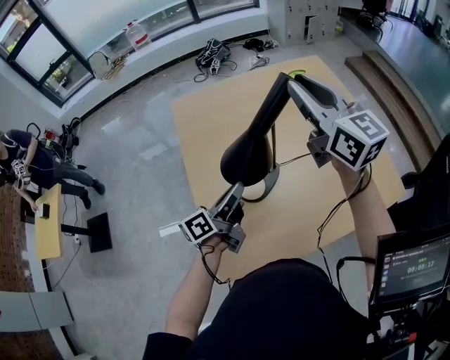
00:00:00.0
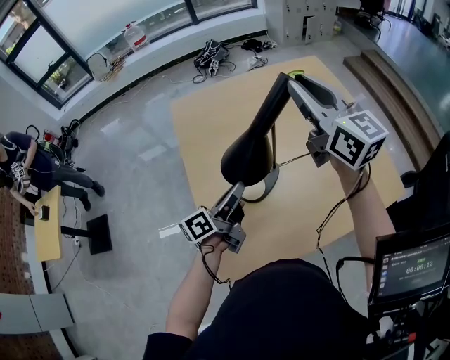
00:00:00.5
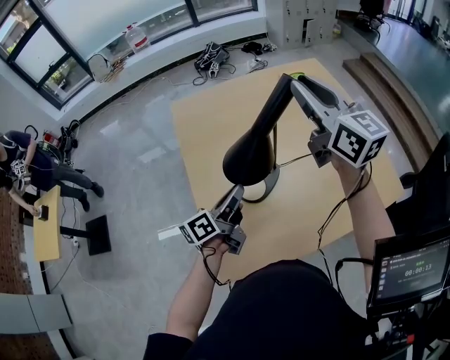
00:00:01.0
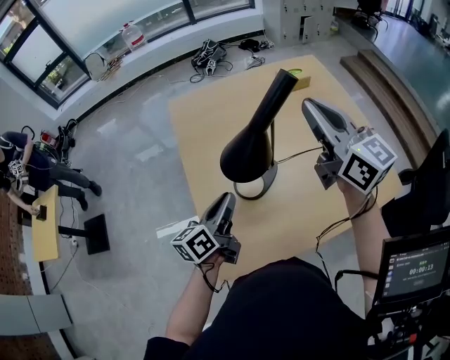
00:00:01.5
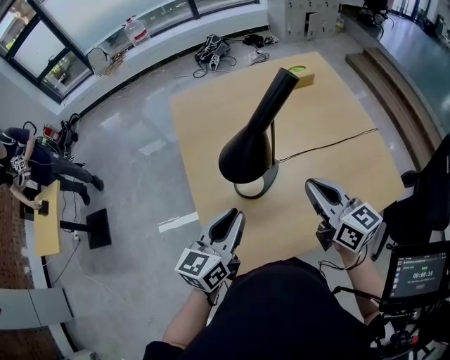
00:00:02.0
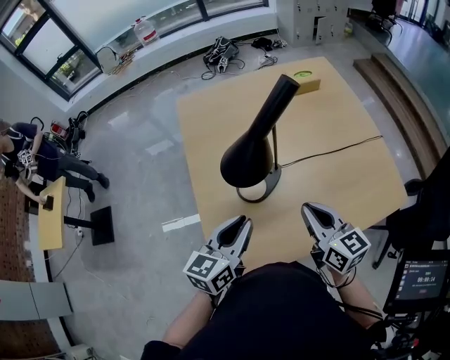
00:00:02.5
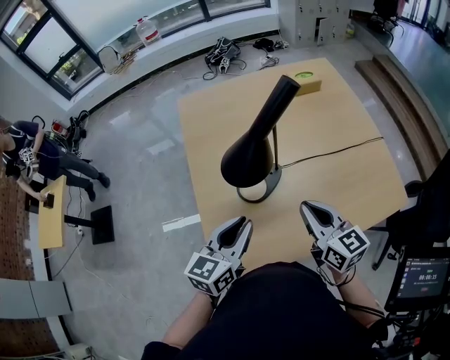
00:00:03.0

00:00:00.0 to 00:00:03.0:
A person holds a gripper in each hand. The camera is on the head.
00:00:00.0 to 00:00:01.5: There are only small adjustments of the grippers.
00:00:01.5 to 00:00:03.0: The right gripper goes some 25 cm downward and backward, and rotates approximately 20 degrees. The left gripper moves backward, about 10 cm, and turns by about 30 degrees.

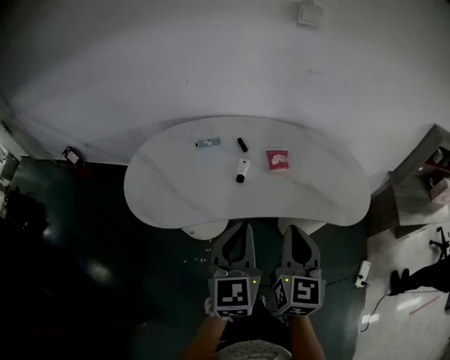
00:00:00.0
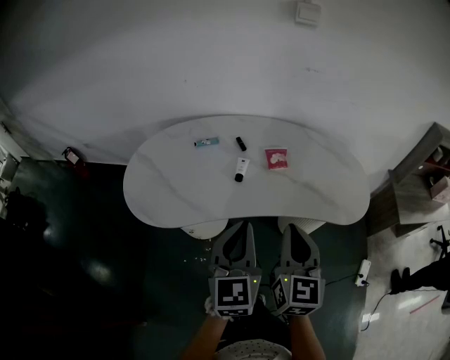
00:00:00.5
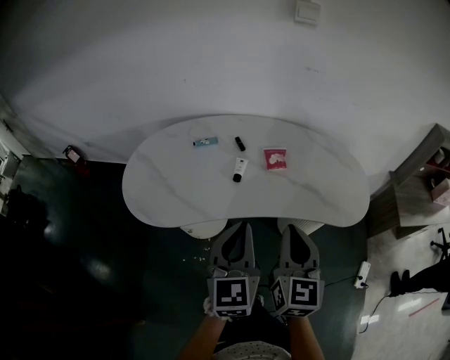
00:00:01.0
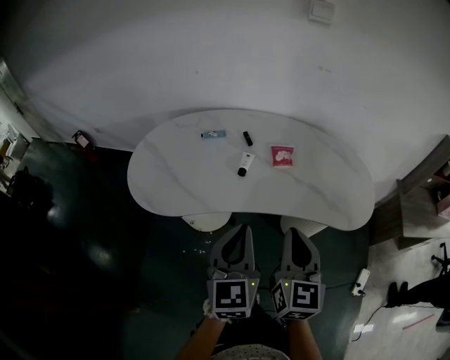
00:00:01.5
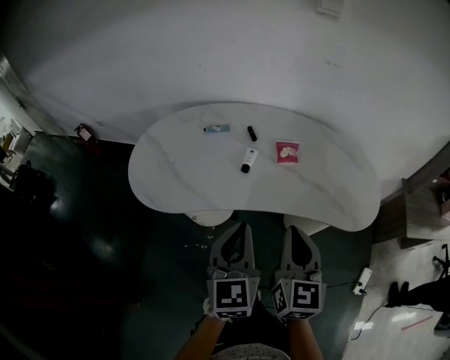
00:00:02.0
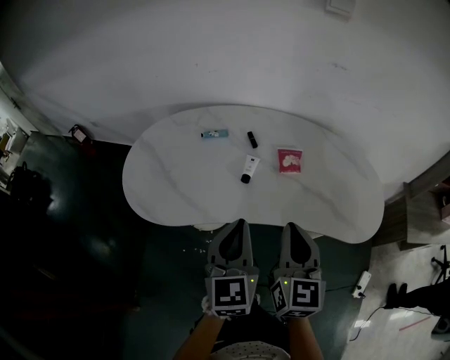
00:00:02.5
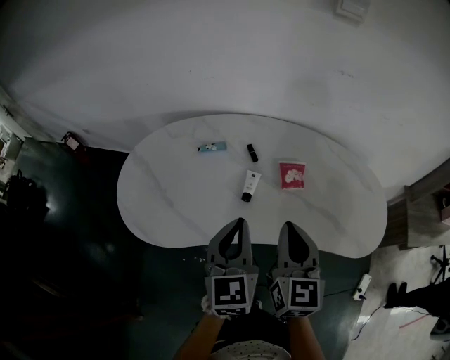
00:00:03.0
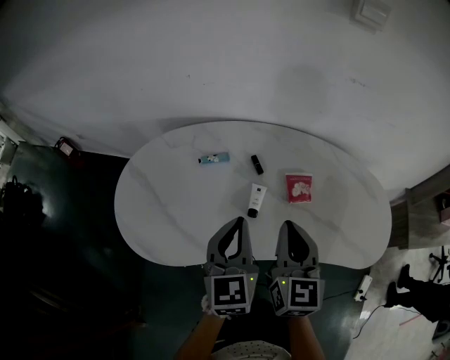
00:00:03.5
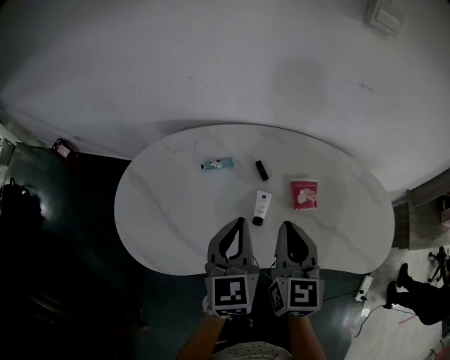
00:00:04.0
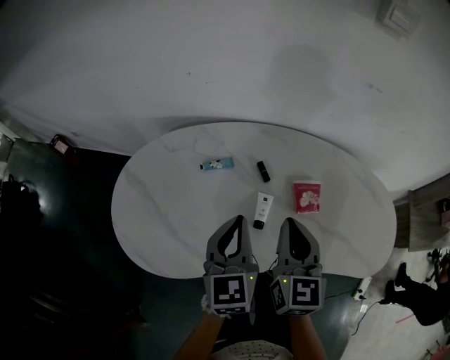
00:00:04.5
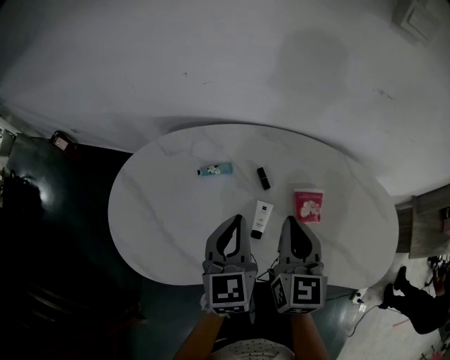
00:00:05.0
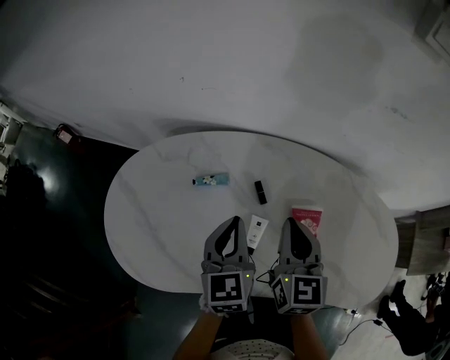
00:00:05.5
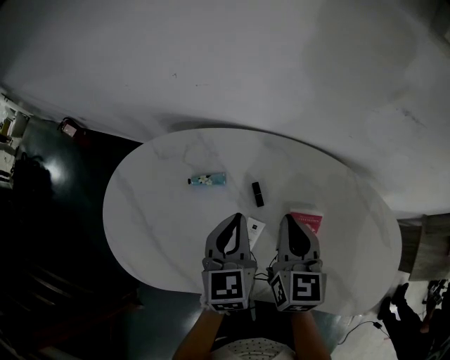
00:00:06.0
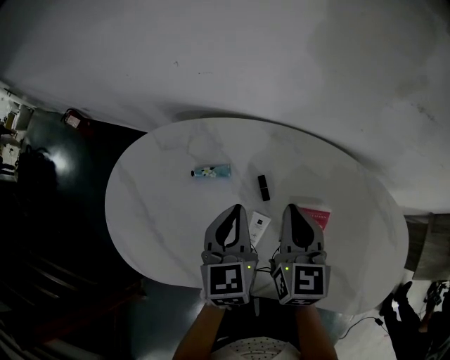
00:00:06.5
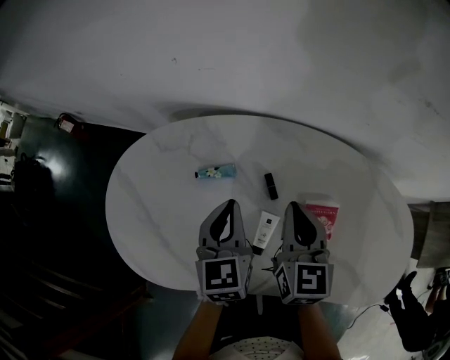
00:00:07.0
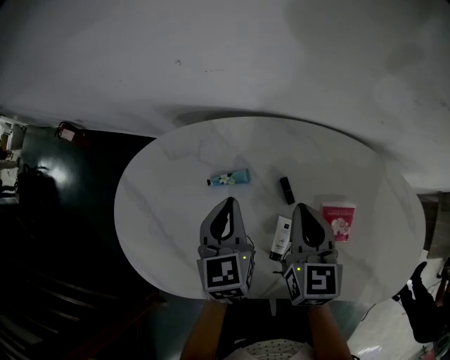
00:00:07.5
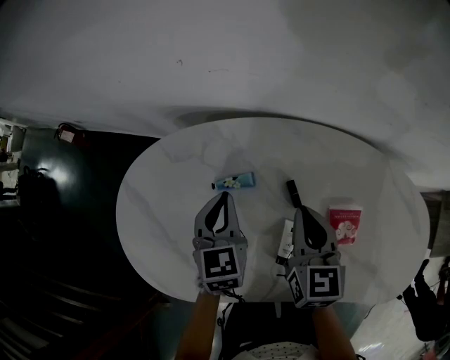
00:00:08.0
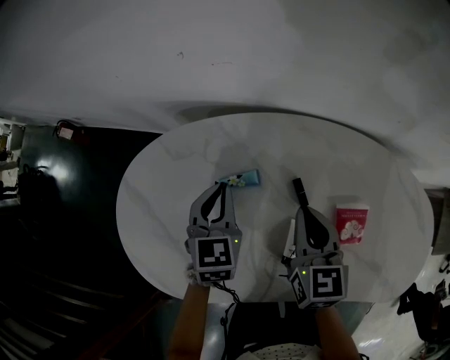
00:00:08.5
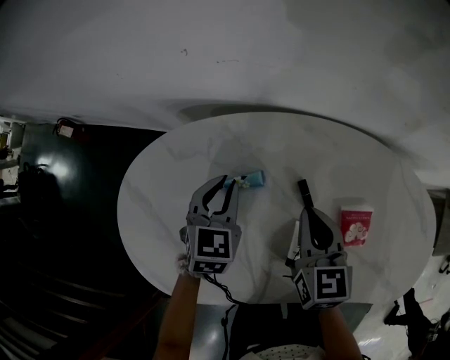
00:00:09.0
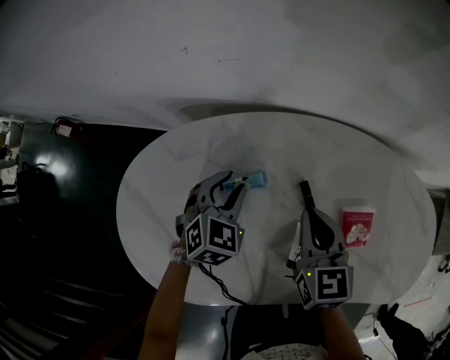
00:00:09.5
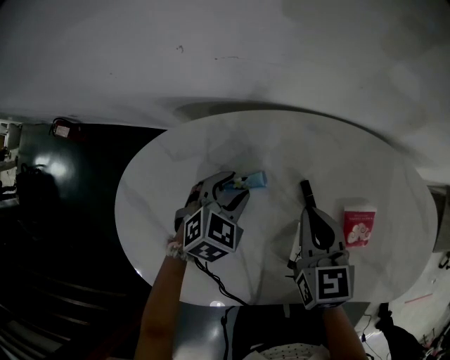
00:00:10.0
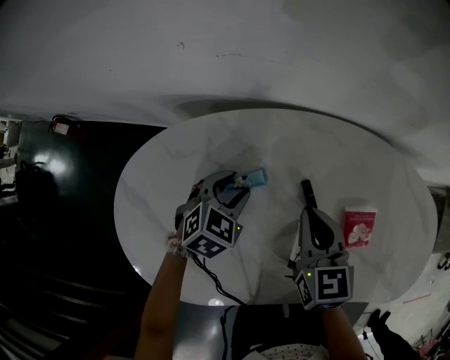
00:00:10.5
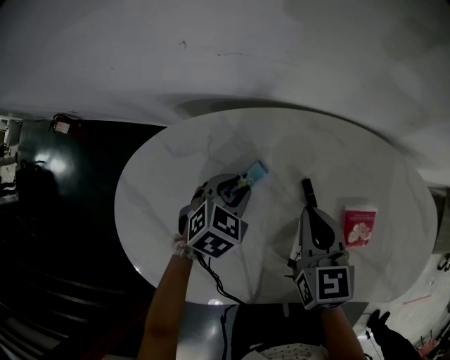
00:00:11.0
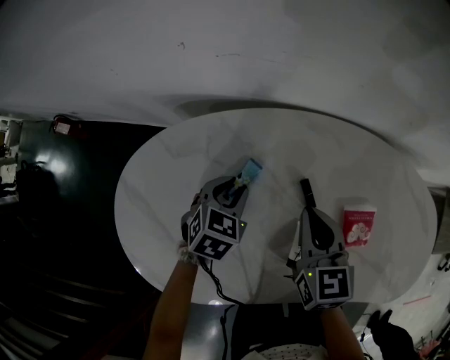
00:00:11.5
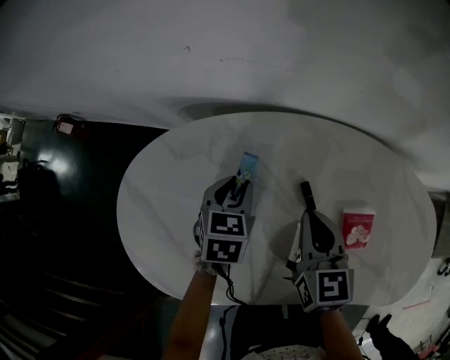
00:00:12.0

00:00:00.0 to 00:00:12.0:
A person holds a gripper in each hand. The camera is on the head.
00:00:00.0 to 00:00:02.0: The grippers stay close to where they were, moving slightly.
00:00:02.0 to 00:00:04.0: Both grippers move forward, approximately 25 cm.
00:00:04.0 to 00:00:06.0: The right gripper travels forward by roughly 15 cm. Meanwhile the left gripper moves forward and downward, about 15 cm.
00:00:06.0 to 00:00:08.0: The right gripper moves to the left, approximately 5 cm. The left gripper shifts roughly 15 cm to the left, forward and downward.
00:00:08.0 to 00:00:10.0: The left gripper heads downward, covering approximately 10 cm, changes its angle by roughly 50 degrees, and opens its fingers.
00:00:10.0 to 00:00:12.0: The left gripper swivels about 30 degrees.

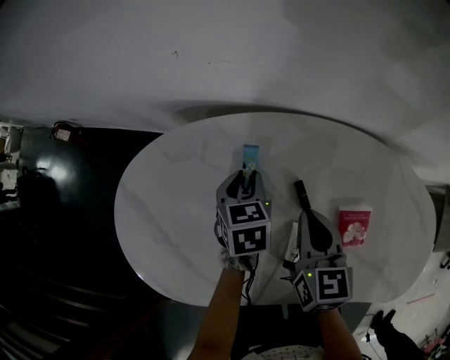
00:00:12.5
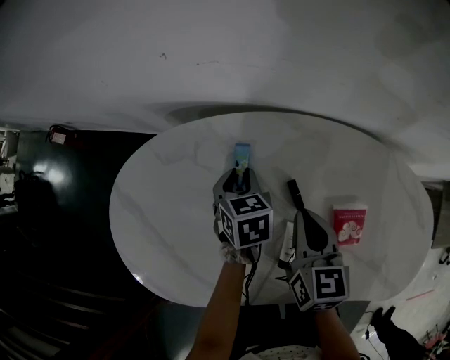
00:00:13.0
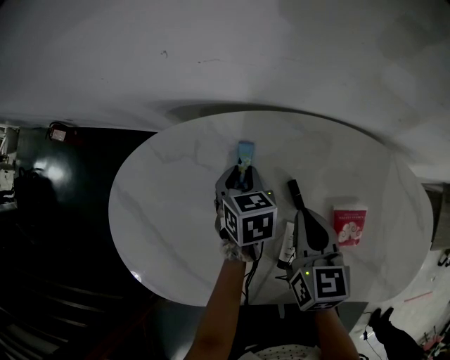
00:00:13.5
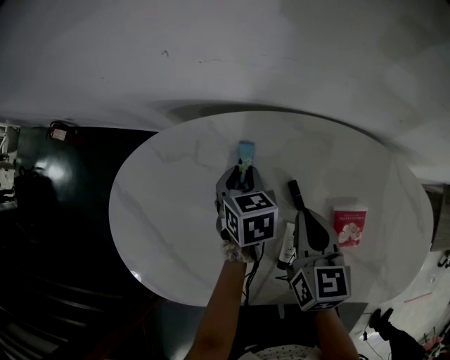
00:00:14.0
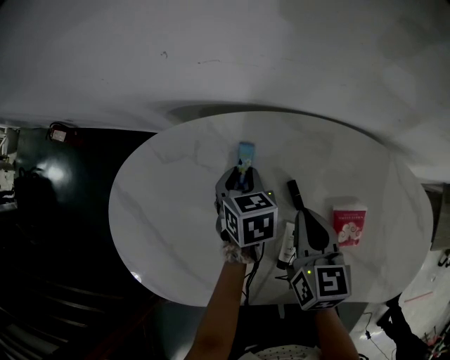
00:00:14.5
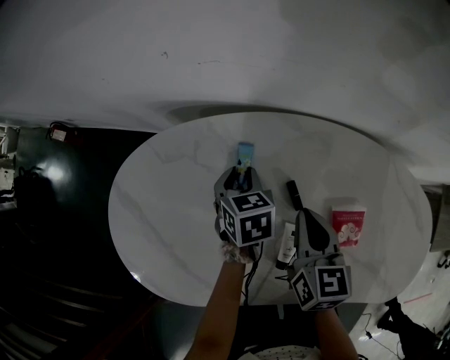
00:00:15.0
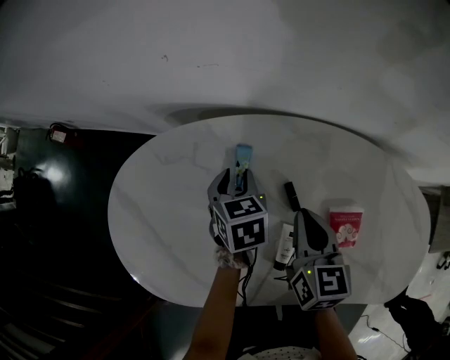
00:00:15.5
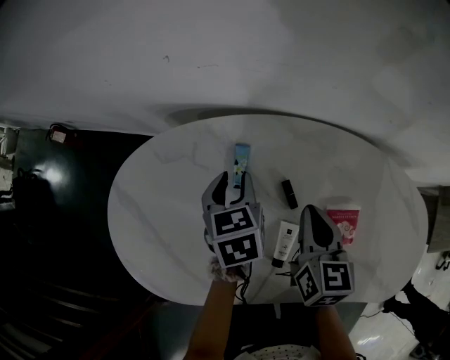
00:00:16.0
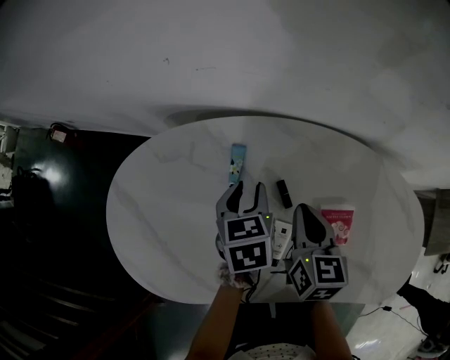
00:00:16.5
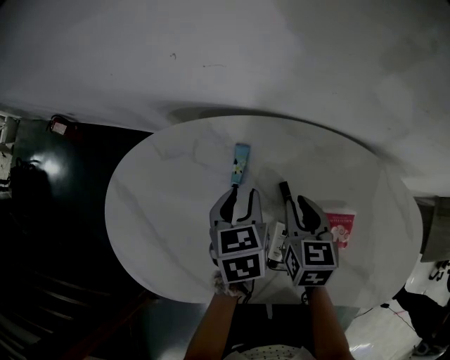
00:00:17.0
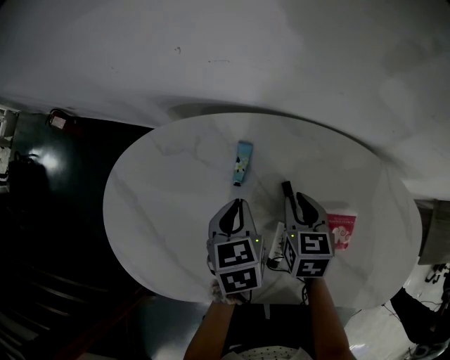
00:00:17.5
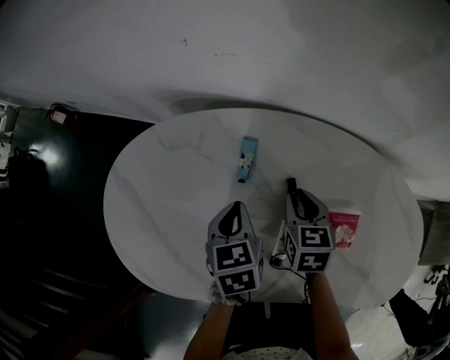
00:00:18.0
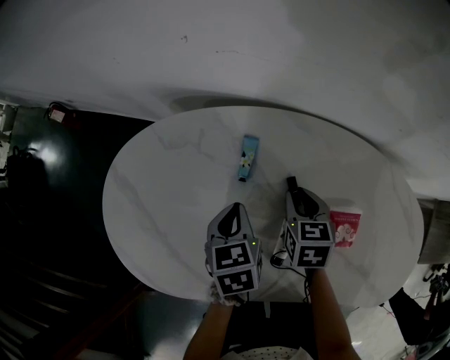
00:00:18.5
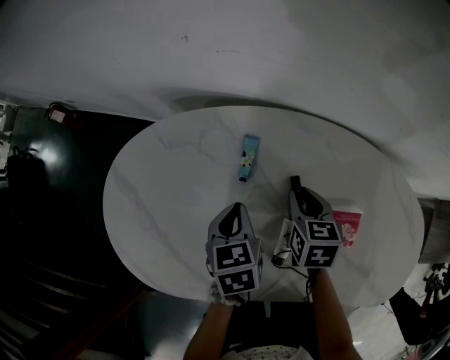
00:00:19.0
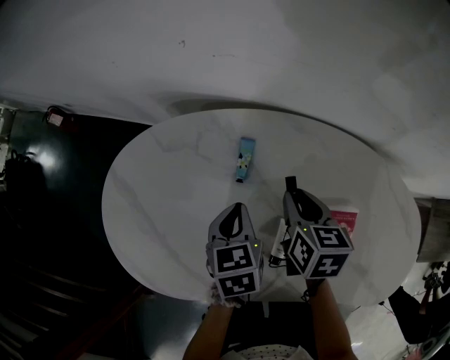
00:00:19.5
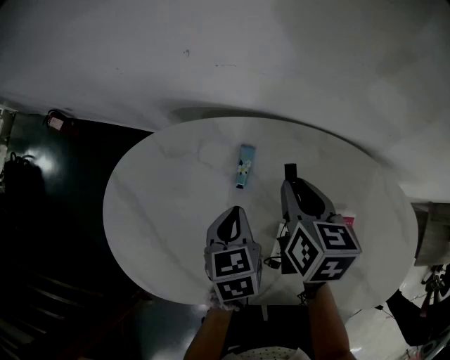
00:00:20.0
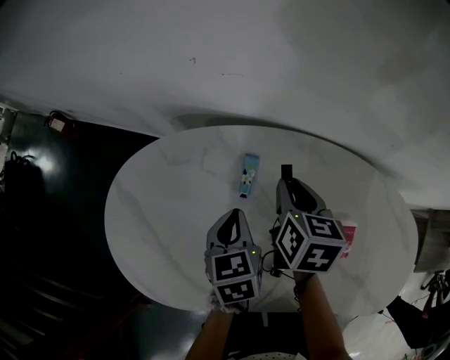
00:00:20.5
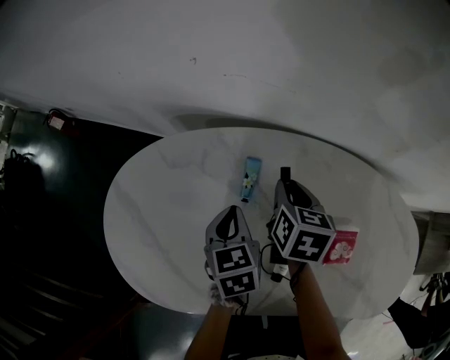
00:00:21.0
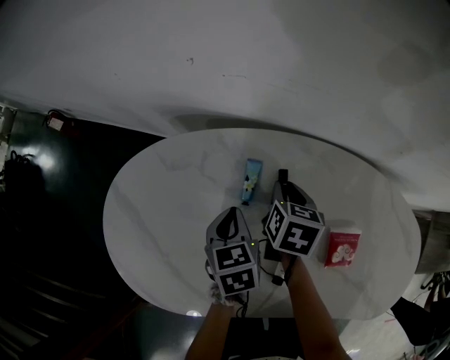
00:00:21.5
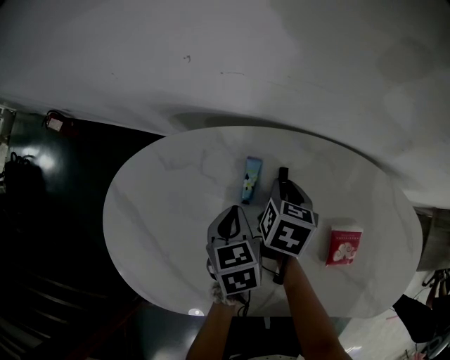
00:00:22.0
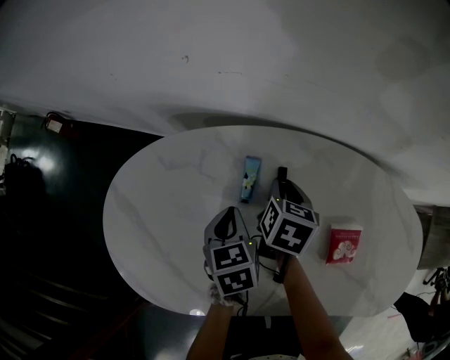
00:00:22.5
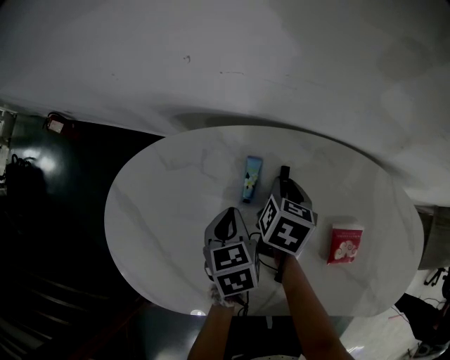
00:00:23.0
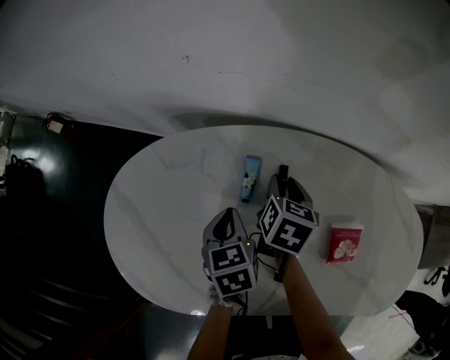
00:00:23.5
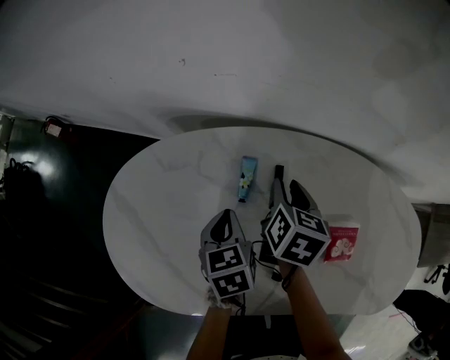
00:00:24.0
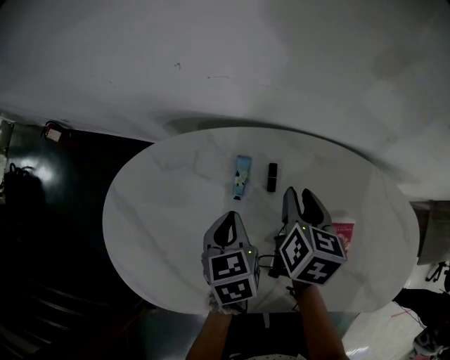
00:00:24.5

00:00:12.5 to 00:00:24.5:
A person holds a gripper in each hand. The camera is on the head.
00:00:12.5 to 00:00:14.5: The grippers stay close to where they were, moving slightly.
00:00:14.5 to 00:00:16.5: The left gripper moves upward, roughly 5 cm.
00:00:16.5 to 00:00:18.5: The right gripper shifts some 10 cm downward, rotates about 20 degrees, and opens. Meanwhile the left gripper is displaced to the left and backward by roughly 10 cm, and closes its fingers.
00:00:18.5 to 00:00:20.5: The right gripper shifts some 10 cm upward and forward.
00:00:20.5 to 00:00:22.5: The right gripper heads downward, covering some 10 cm, while the left gripper changes place by roughly 5 cm.
00:00:22.5 to 00:00:24.5: The right gripper shifts roughly 10 cm upward.
